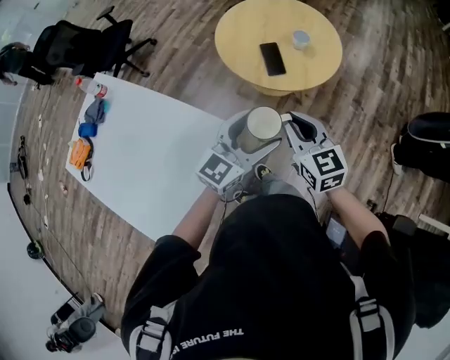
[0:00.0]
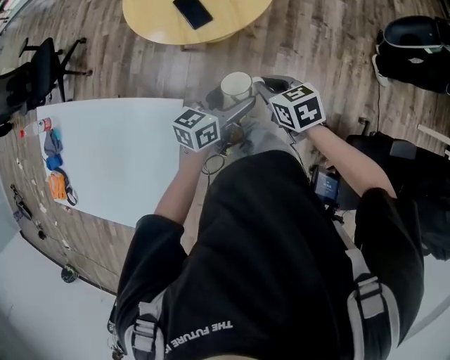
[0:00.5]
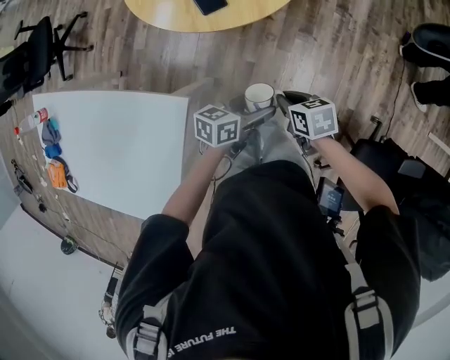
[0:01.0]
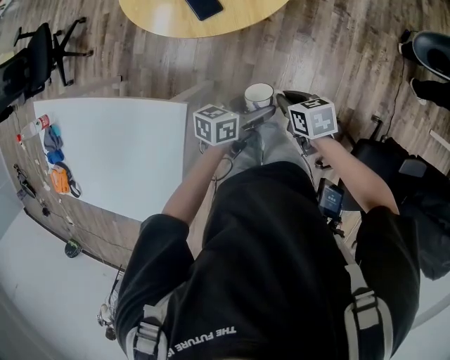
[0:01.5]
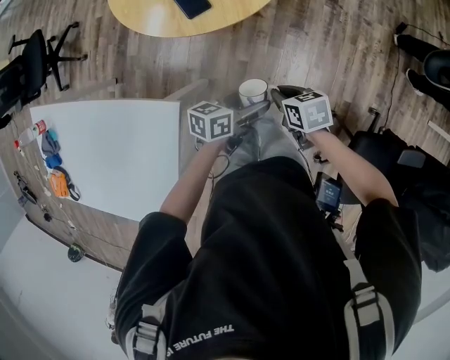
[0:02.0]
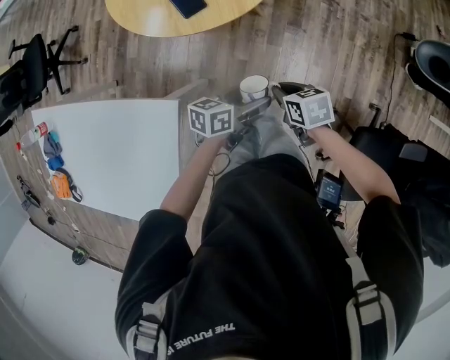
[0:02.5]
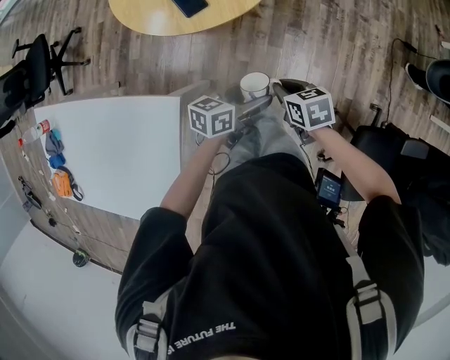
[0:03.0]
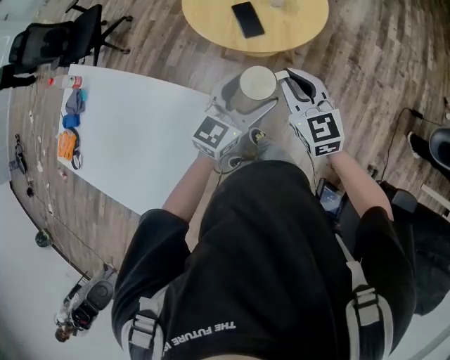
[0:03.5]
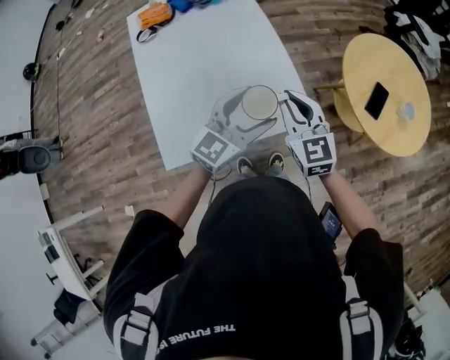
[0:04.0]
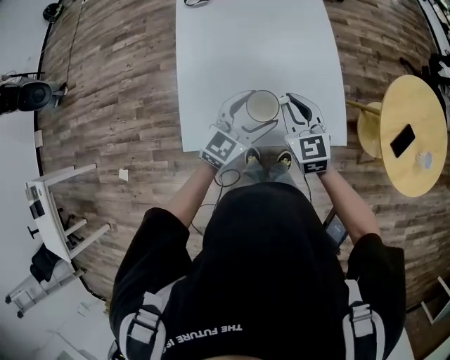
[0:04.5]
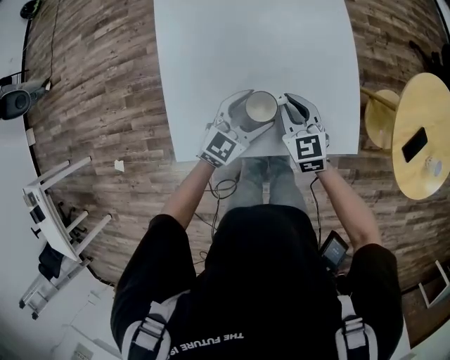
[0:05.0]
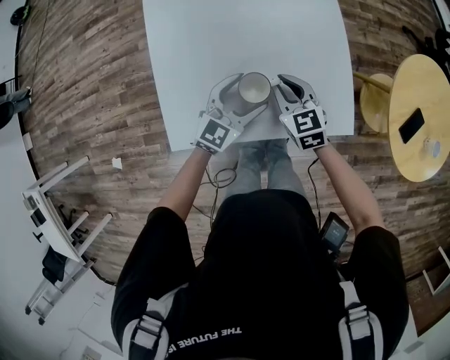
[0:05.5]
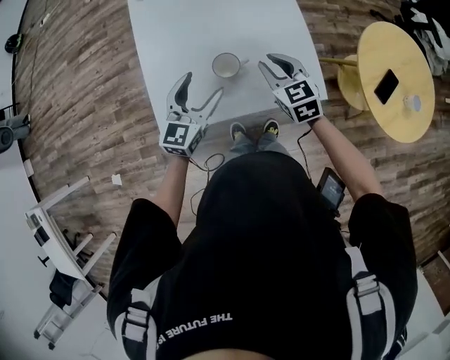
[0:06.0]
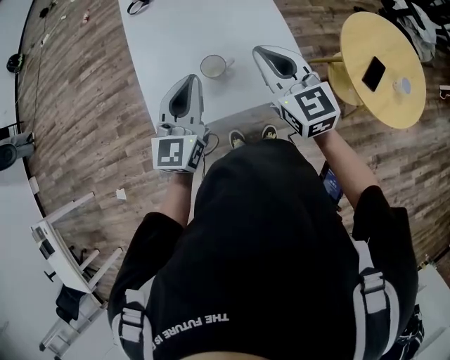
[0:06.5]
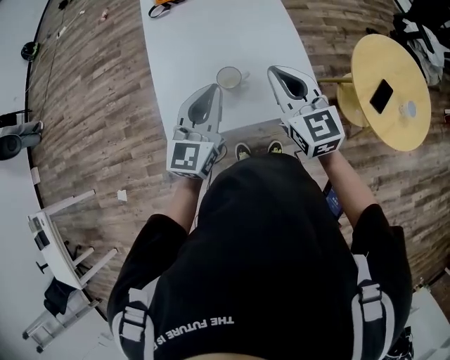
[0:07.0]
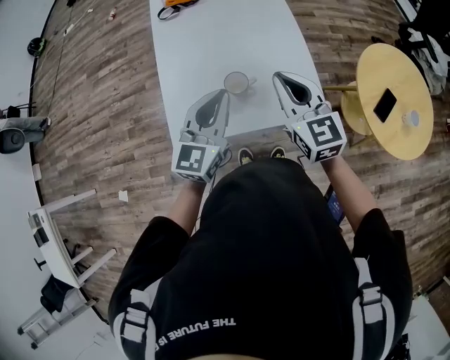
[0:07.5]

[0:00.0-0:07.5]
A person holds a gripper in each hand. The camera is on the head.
0:00.0 to 0:02.0: Both grippers move downward, roughly 25 cm. The right gripper tilts its fingers roughly 40 degrees downward. The left gripper rotates some 60 degrees.
0:02.0 to 0:04.0: The left gripper ends up some 50 cm from where it was, and swivels approximately 80 degrees. Meanwhile the right gripper moves about 50 cm, and rolls counterclockwise, seen from behind, by approximately 70 degrees.
0:04.0 to 0:05.5: The grippers both shift downward and to the left by approximately 25 cm. The right gripper swivels about 30 degrees.
0:05.5 to 0:07.5: The two grippers go approximately 25 cm upward. The right gripper changes its angle by approximately 20 degrees; the left gripper swivels about 20 degrees, and closes up.

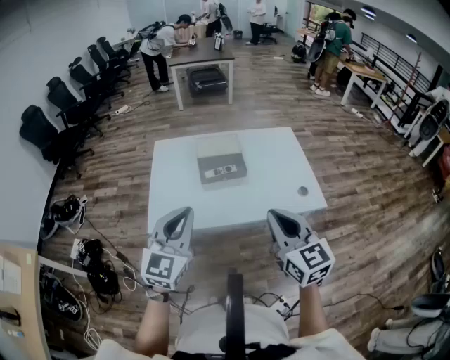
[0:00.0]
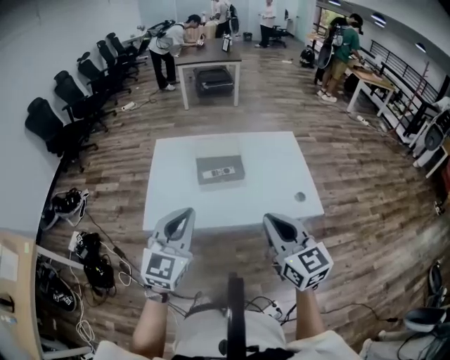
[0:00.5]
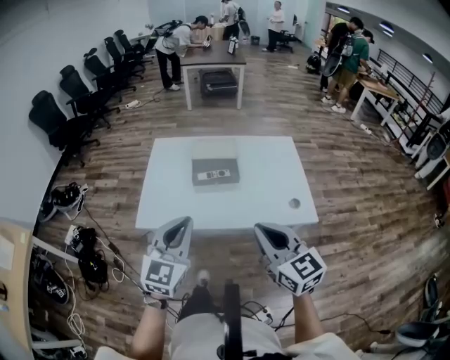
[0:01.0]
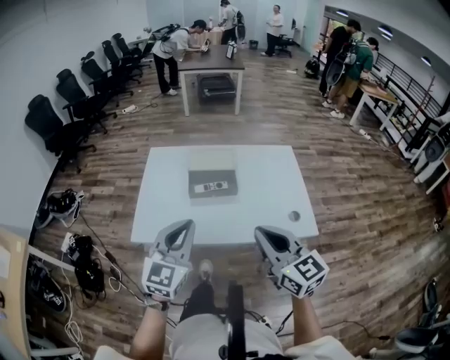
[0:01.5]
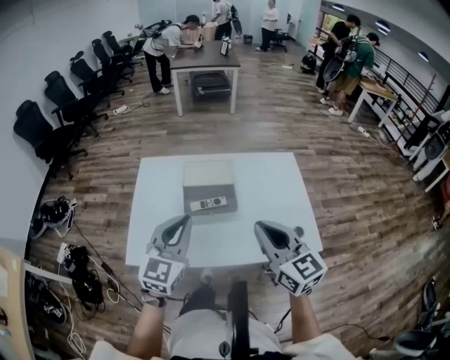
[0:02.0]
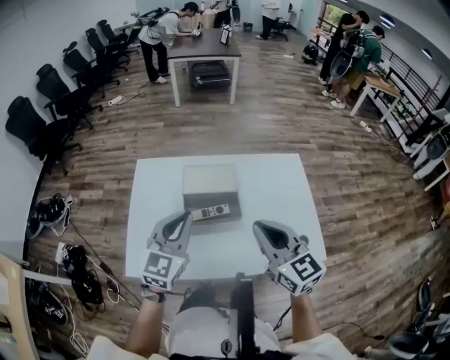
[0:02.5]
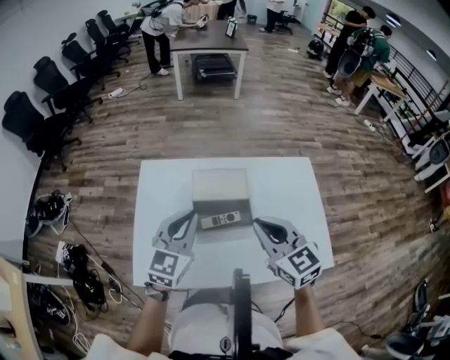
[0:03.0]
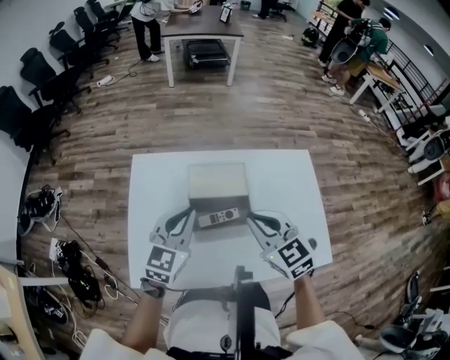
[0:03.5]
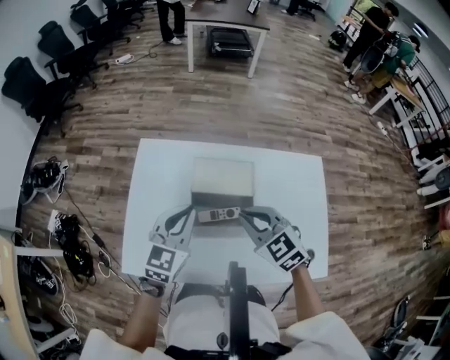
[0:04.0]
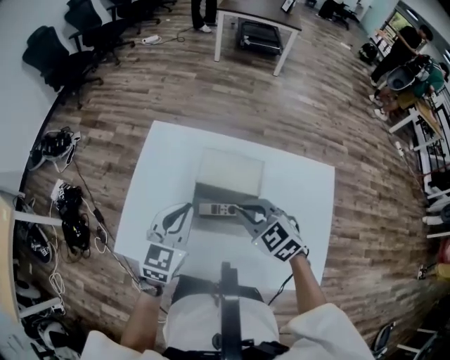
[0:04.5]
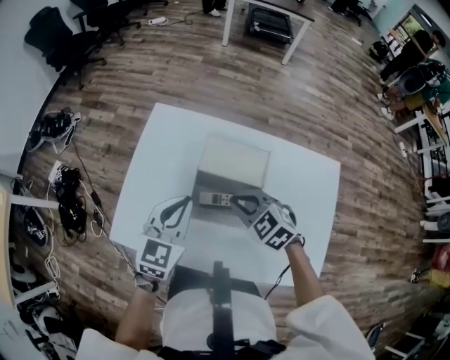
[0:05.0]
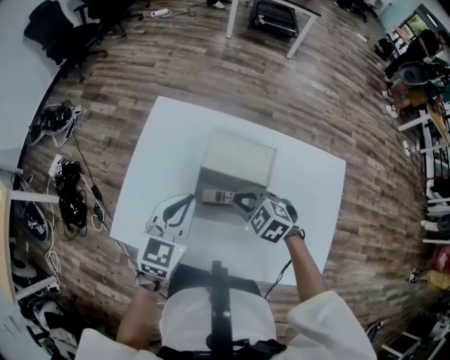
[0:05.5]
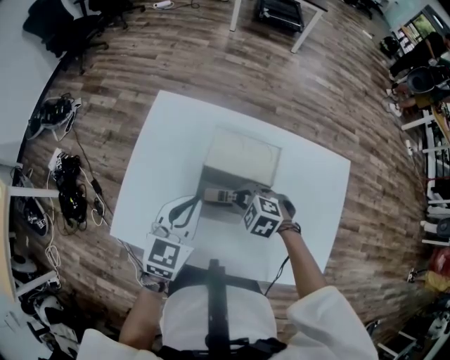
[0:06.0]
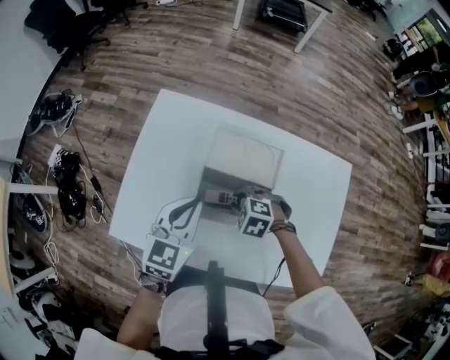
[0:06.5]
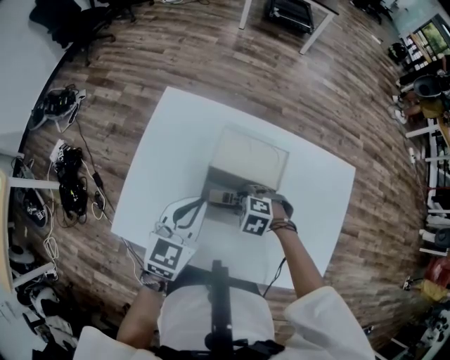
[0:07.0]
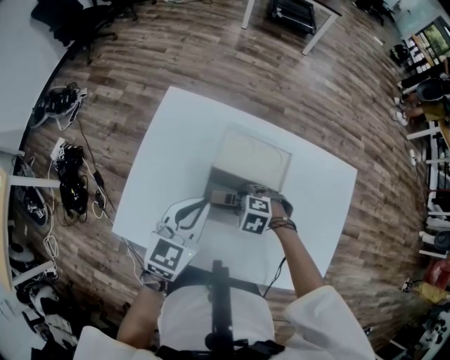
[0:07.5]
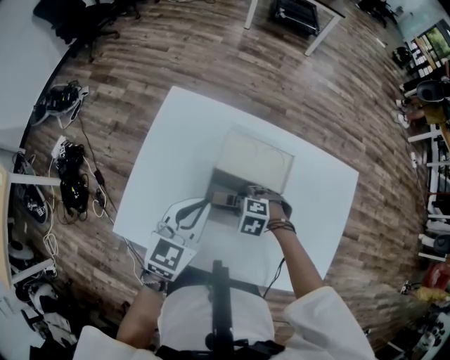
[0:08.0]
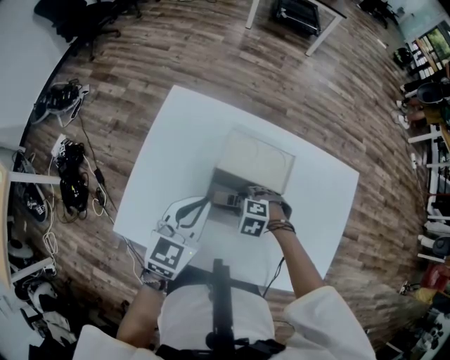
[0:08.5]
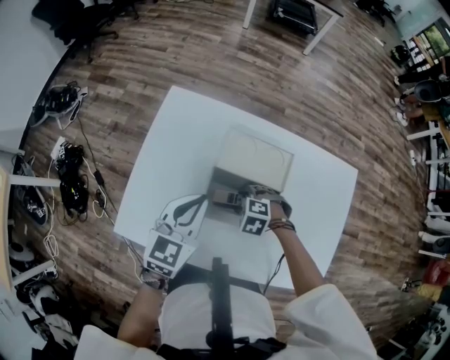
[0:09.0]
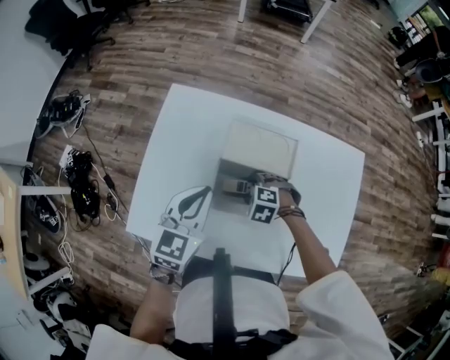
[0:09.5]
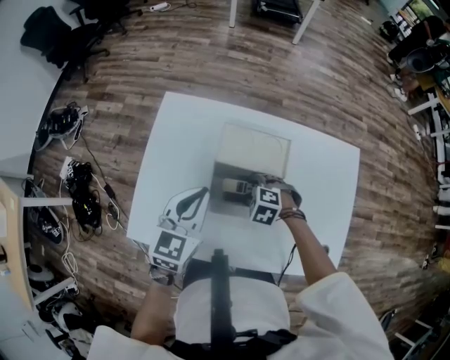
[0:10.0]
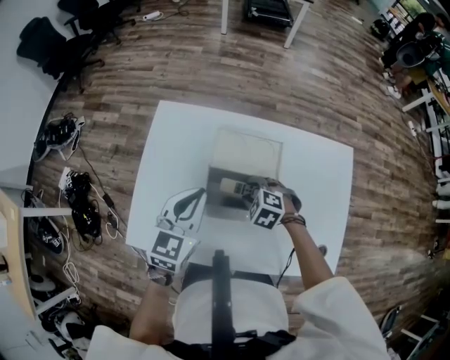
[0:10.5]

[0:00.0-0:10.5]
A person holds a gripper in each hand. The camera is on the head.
0:00.0 to 0:02.0: The left gripper heads forward and to the right, covering approximately 20 cm. The right gripper is displaced forward by some 15 cm.
0:02.0 to 0:04.0: Both grippers travel together forward and downward, about 25 cm. The right gripper swivels about 40 degrees.
0:04.0 to 0:06.5: The left gripper shifts some 5 cm downward. The right gripper heads downward, covering approximately 20 cm, and tilts its fingers roughly 40 degrees downward.
0:06.5 to 0:08.5: The right gripper opens its fingers.
0:08.5 to 0:10.5: The right gripper changes place by approximately 5 cm.

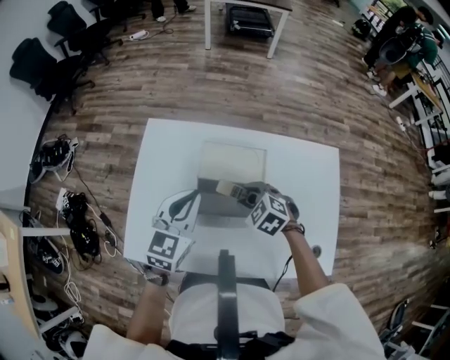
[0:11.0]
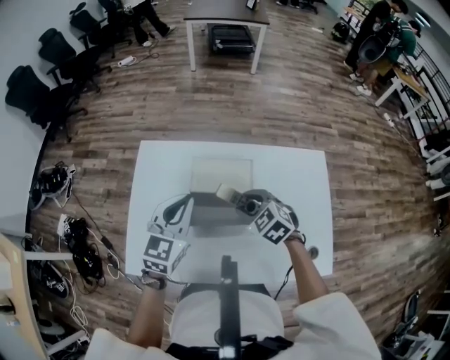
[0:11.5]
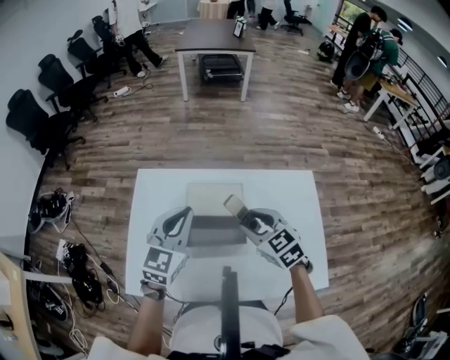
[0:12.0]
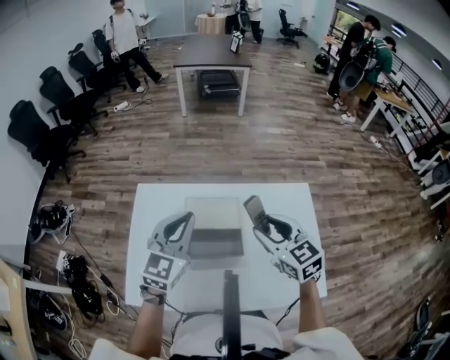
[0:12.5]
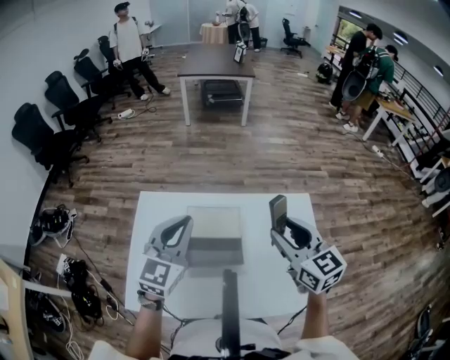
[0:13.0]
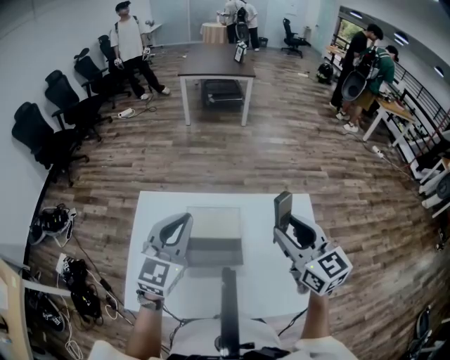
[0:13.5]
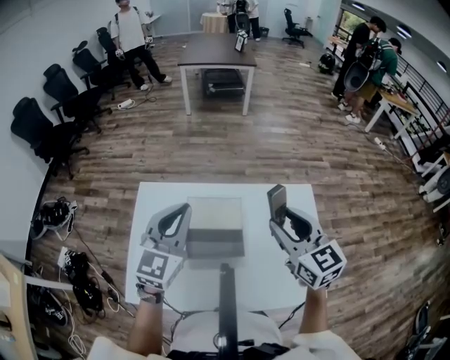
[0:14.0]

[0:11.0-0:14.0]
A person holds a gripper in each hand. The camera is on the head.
0:11.0 to 0:12.5: The right gripper moves upward and to the right, approximately 25 cm, and tips its fingers upward by approximately 30 degrees. Meanwhile the left gripper travels upward and to the right by about 15 cm.
0:12.5 to 0:14.0: The right gripper shifts roughly 5 cm upward.

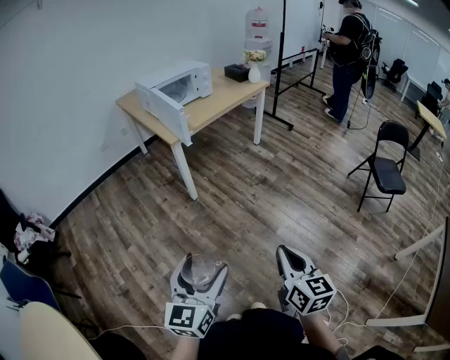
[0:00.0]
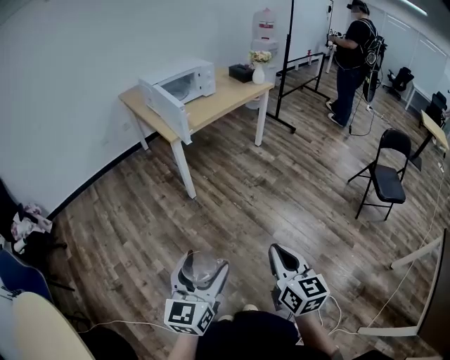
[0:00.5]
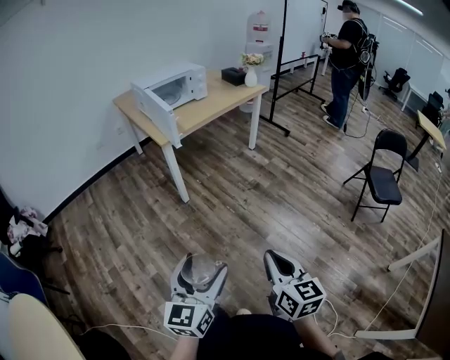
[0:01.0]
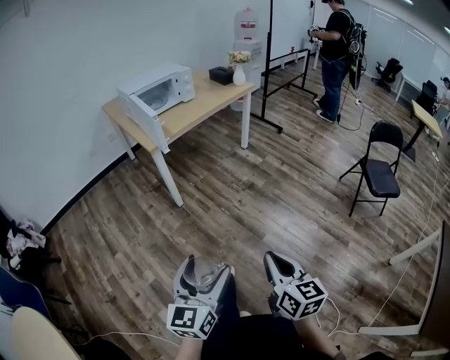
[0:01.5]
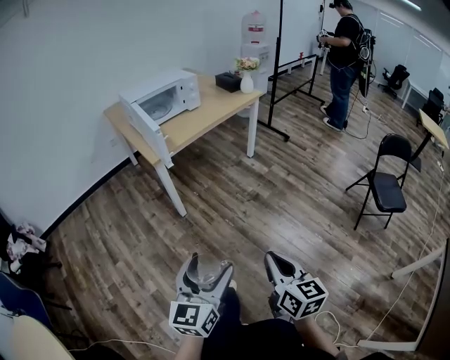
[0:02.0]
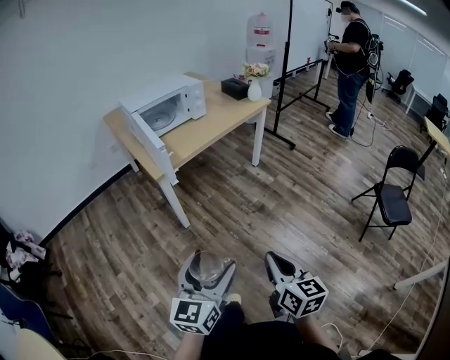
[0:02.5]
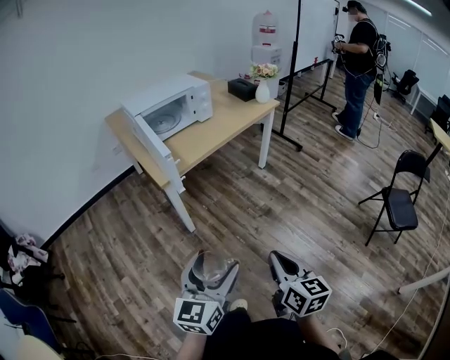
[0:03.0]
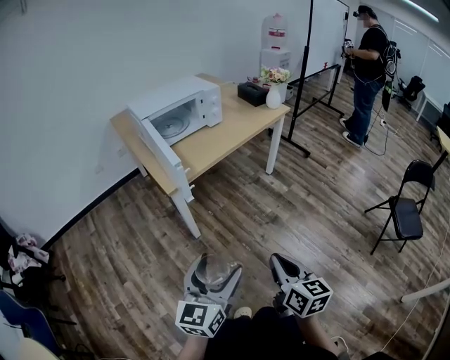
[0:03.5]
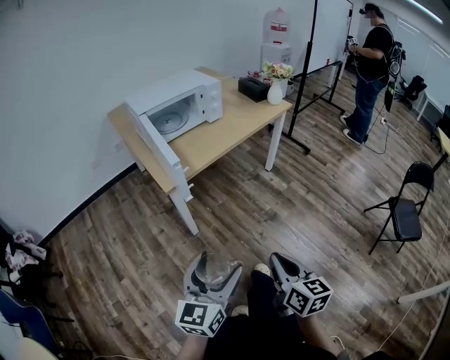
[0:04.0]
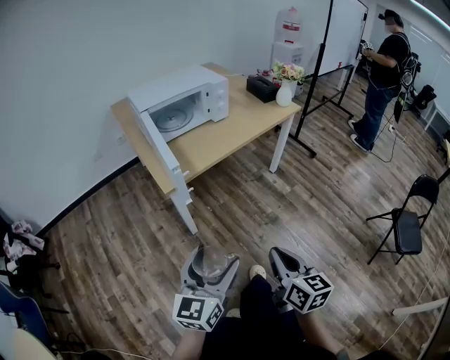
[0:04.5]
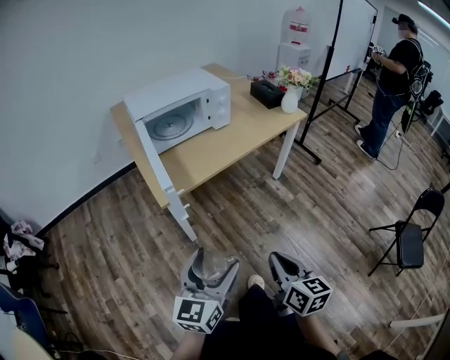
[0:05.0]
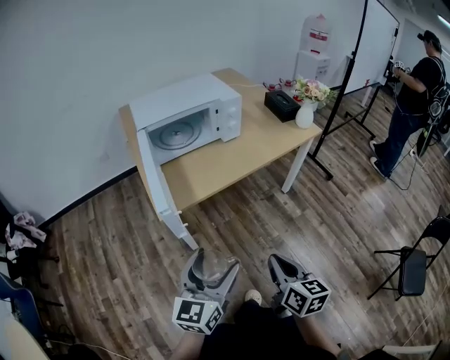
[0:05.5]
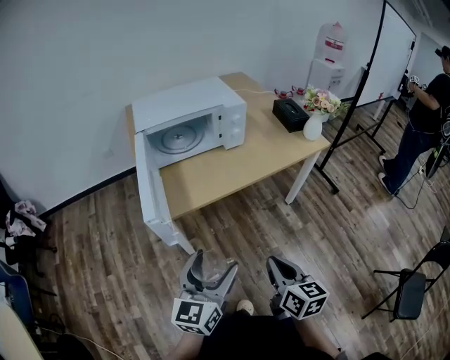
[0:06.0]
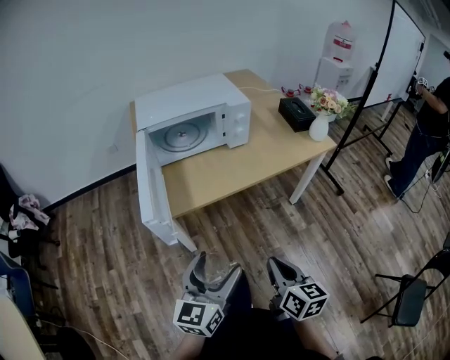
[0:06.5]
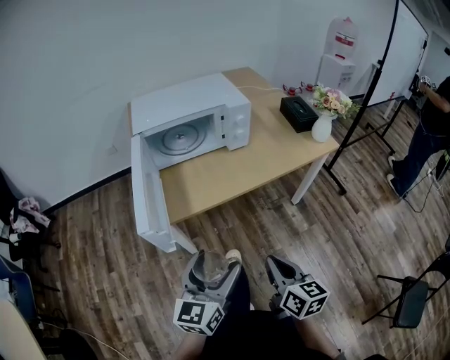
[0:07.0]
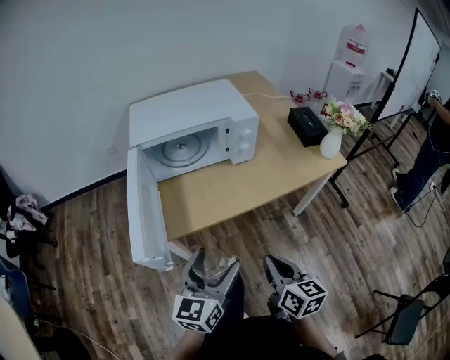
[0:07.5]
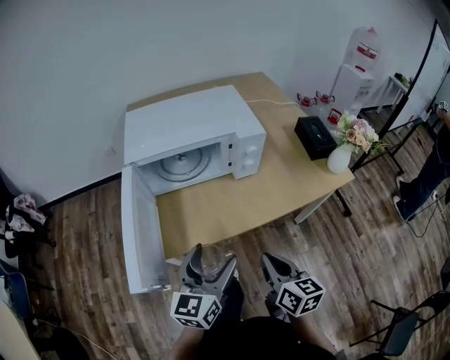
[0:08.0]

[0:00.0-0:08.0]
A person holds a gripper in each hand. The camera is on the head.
0:00.0 to 0:02.0: Both grippers travel together forward and to the right, about 15 cm.
0:02.0 to 0:04.0: The two grippers go approximately 25 cm forward.
0:04.0 to 0:06.0: Both grippers move forward, about 25 cm.
0:06.0 to 0:08.0: The two grippers go approximately 25 cm forward.
